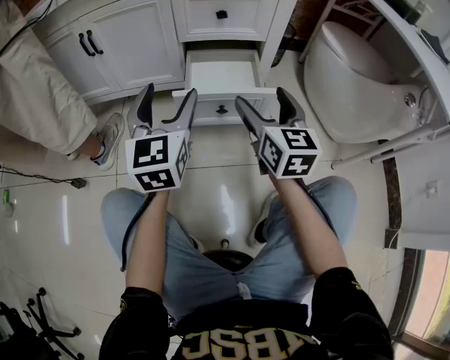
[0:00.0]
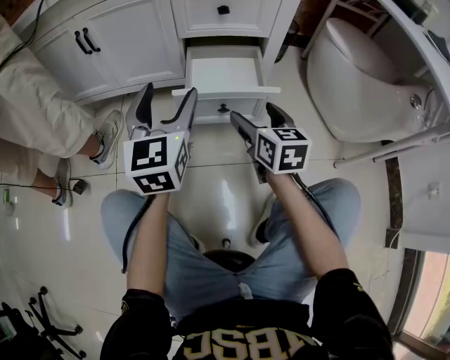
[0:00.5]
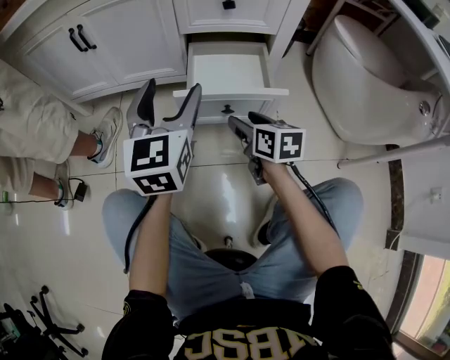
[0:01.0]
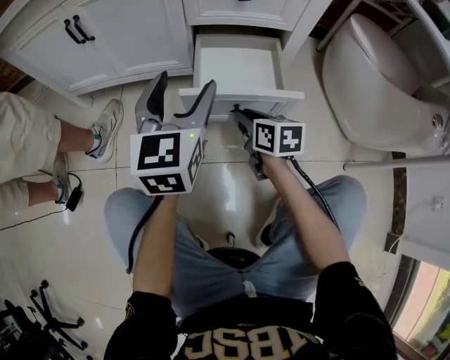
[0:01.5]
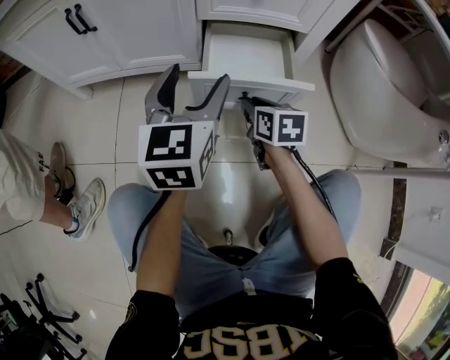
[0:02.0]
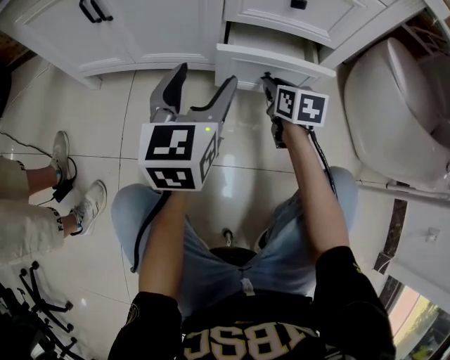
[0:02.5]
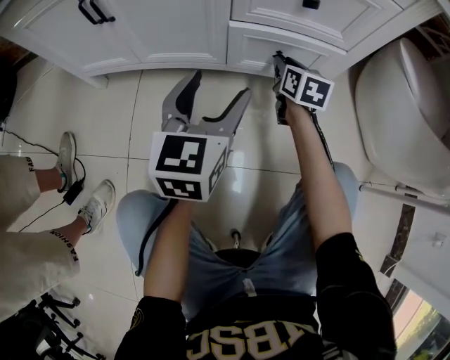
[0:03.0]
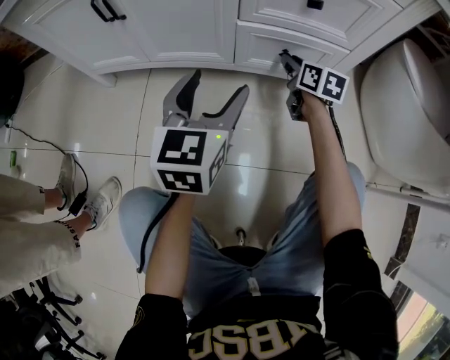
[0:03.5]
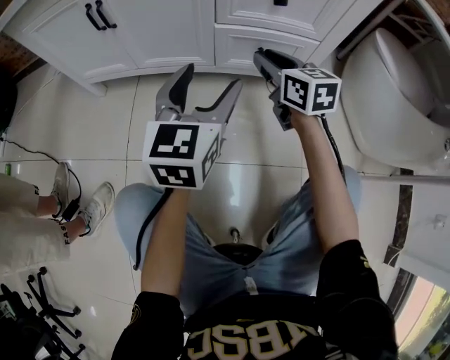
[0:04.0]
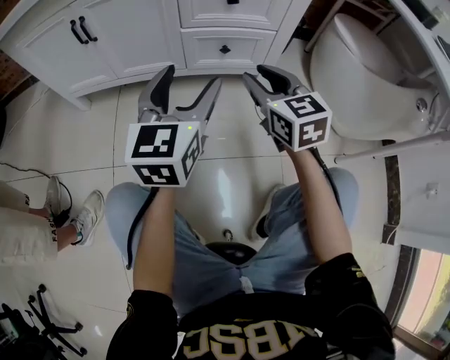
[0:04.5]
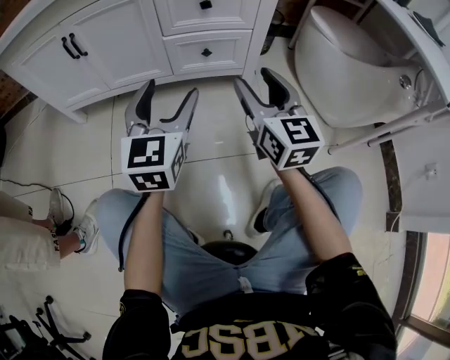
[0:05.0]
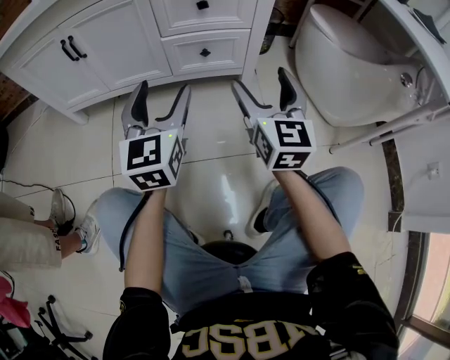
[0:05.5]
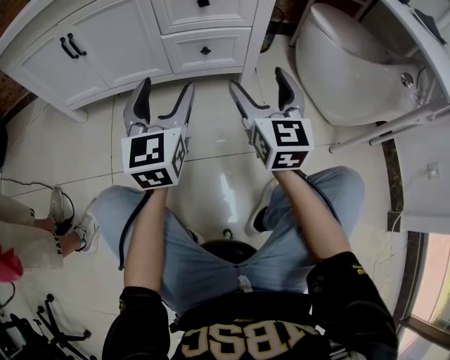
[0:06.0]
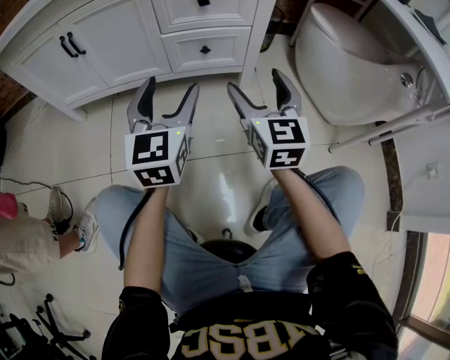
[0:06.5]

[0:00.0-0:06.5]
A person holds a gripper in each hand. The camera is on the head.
0:00.0 to 0:02.0: The right gripper shifts some 20 cm downward and forward, angles its fingers downward, by about 30 degrees, and closes. The left gripper travels forward by approximately 10 cm.
0:02.0 to 0:04.5: The right gripper is displaced upward by some 15 cm, goes forward and returns, some 15 cm each way, and turns by about 30 degrees. The left gripper heads backward, covering some 5 cm.
0:04.5 to 0:06.5: The right gripper travels backward and to the right by approximately 10 cm, rotates approximately 20 degrees, and opens its fingers.

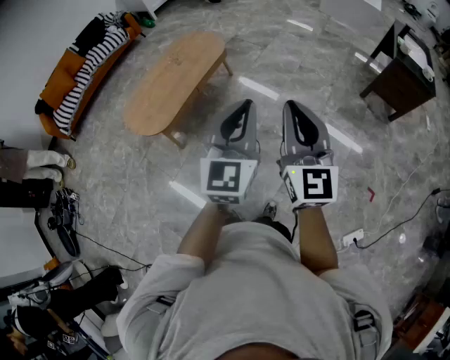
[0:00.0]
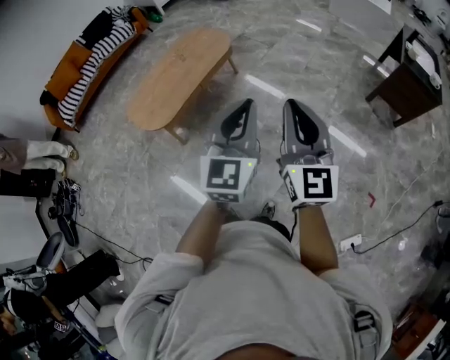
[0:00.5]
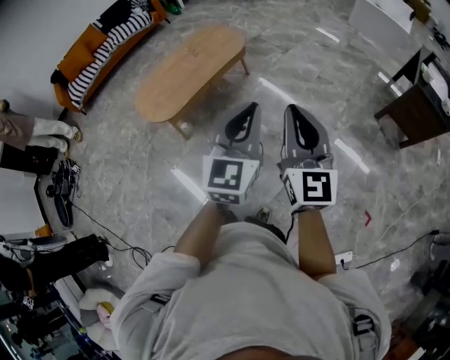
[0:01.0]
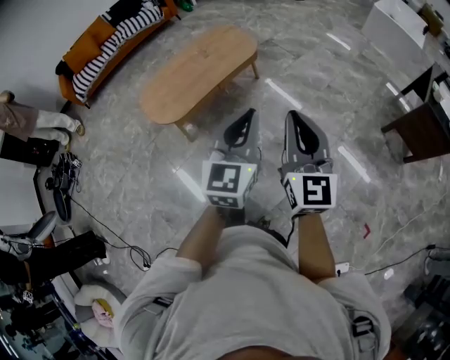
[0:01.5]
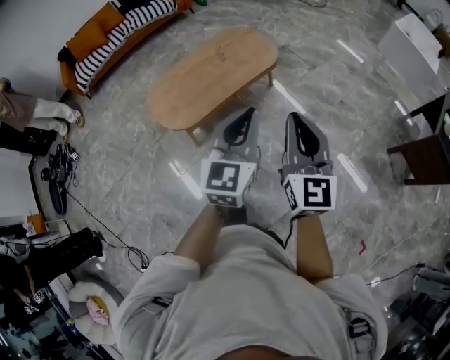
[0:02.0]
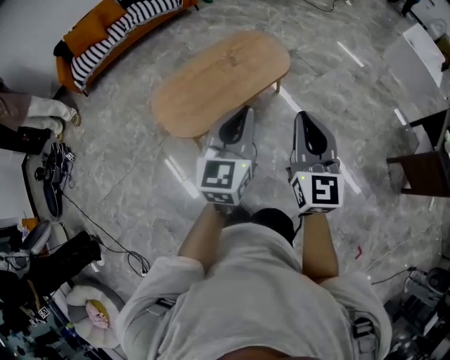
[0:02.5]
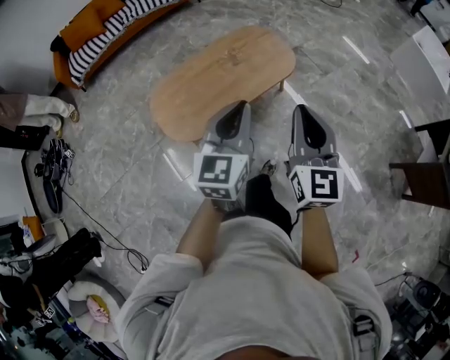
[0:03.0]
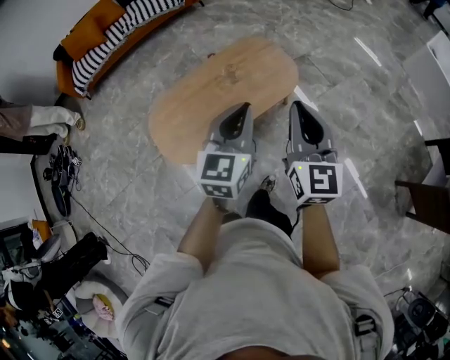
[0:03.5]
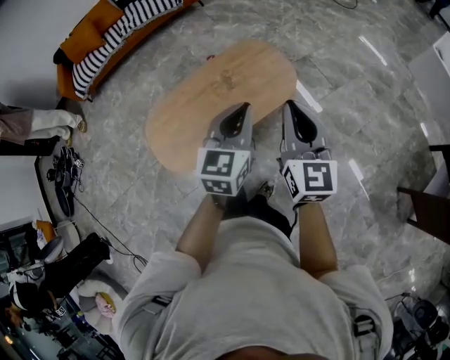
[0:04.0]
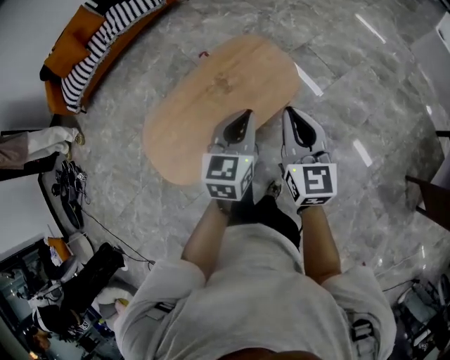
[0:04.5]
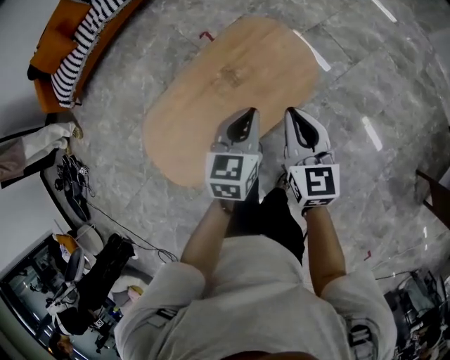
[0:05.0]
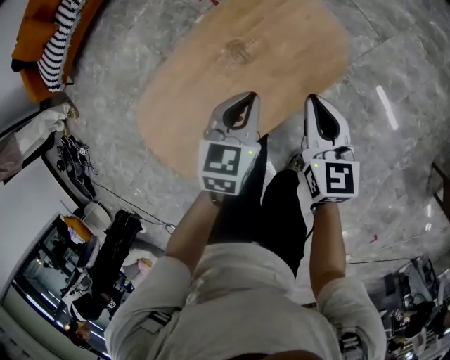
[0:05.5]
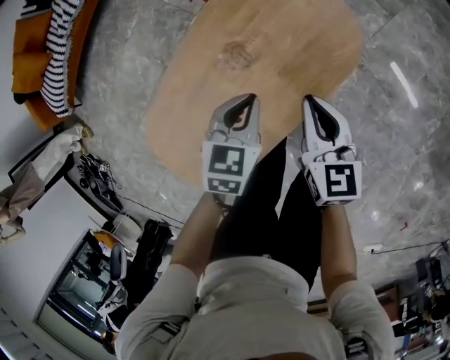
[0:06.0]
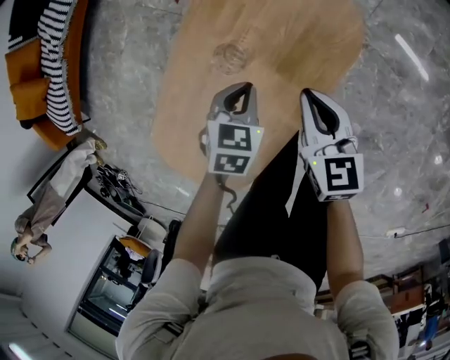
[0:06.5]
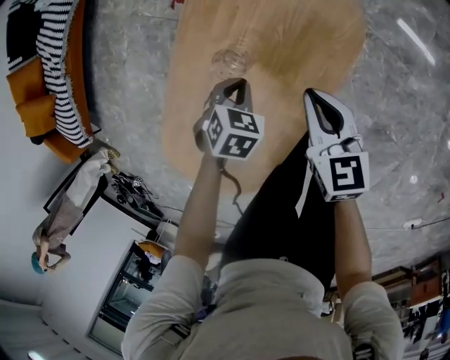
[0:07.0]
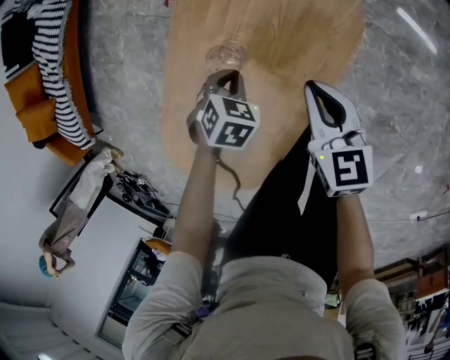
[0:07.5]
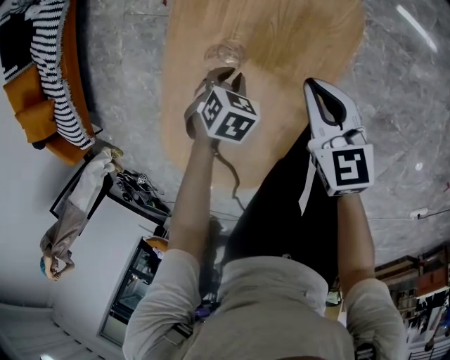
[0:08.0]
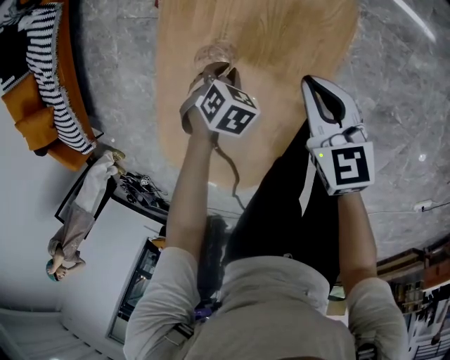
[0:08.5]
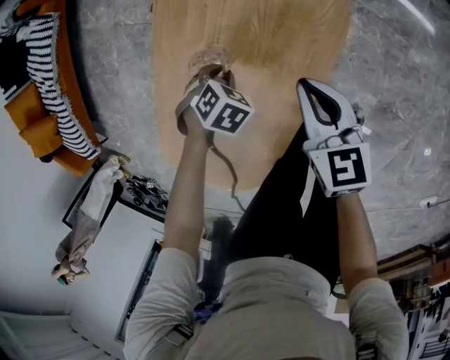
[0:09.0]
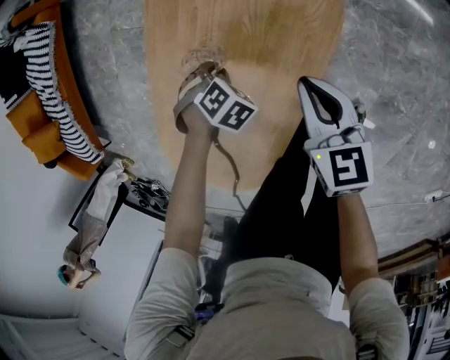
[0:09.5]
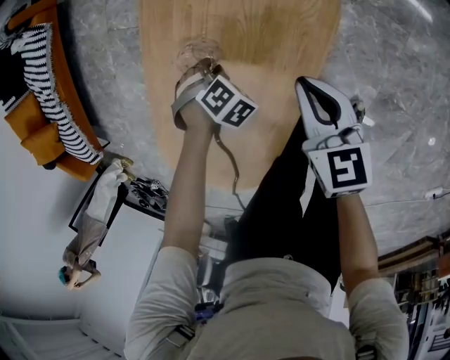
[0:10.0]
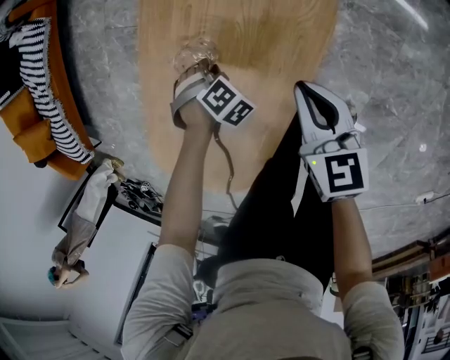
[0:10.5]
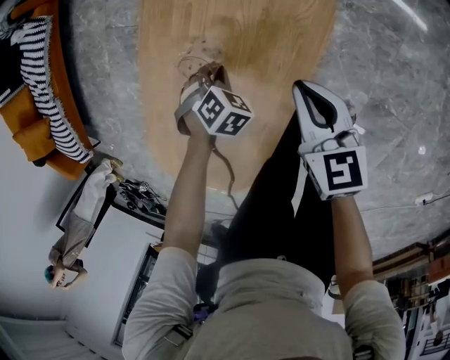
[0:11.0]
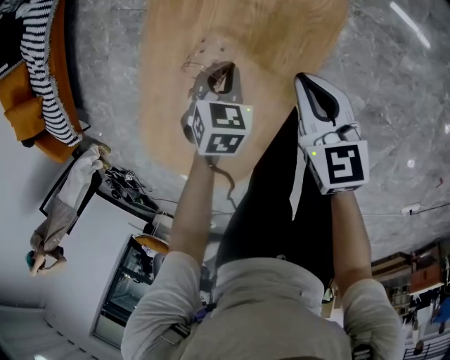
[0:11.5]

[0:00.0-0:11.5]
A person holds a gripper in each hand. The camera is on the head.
0:00.0 to 0:02.0: The grippers both shift forward and to the left by roughly 20 cm.
0:02.0 to 0:04.0: The two grippers travel together, forward, about 40 cm.
0:04.0 to 0:06.0: Both grippers move downward and forward, approximately 40 cm. The right gripper swivels roughly 30 degrees, while the left gripper tilts its fingers some 30 degrees downward.
0:06.0 to 0:07.5: The right gripper heads downward, covering approximately 10 cm. Meanwhile the left gripper goes roughly 15 cm downward, and swivels roughly 40 degrees.
0:07.5 to 0:09.5: The left gripper is displaced downward by roughly 5 cm, and rotates about 30 degrees.
0:09.5 to 0:11.5: The left gripper travels upward by approximately 10 cm, and changes its angle by some 40 degrees.

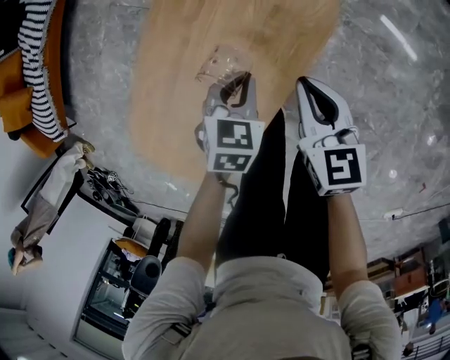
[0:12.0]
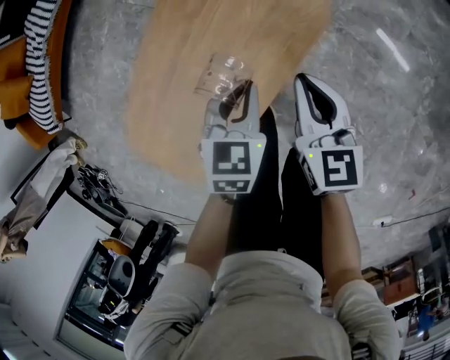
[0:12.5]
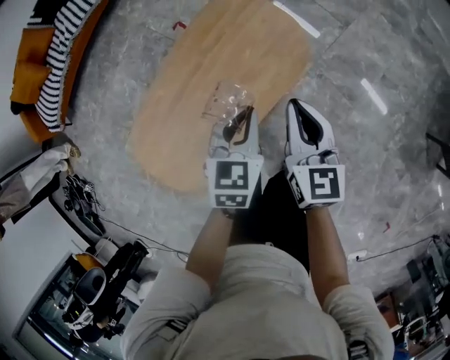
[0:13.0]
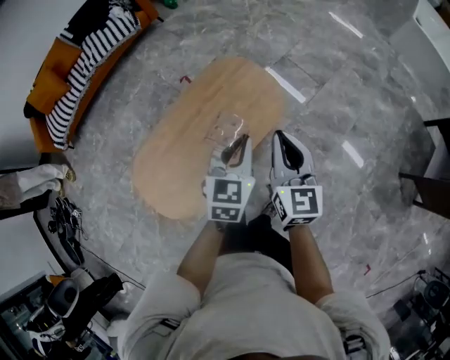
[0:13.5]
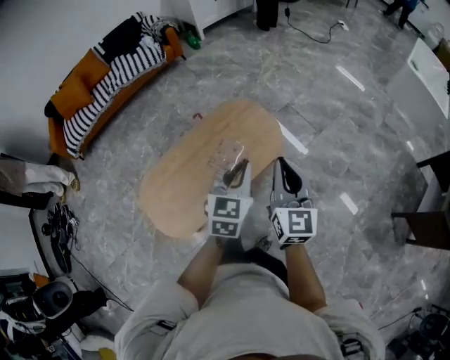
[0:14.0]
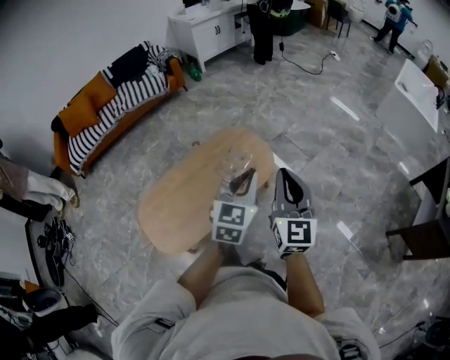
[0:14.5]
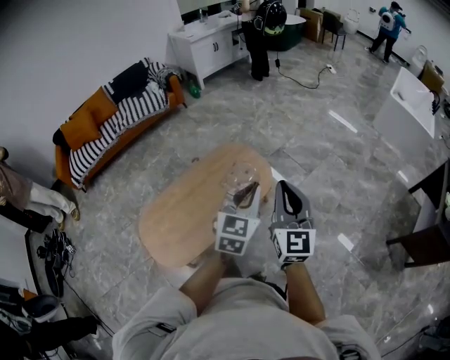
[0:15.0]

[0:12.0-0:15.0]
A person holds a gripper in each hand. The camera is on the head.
0:12.0 to 0:13.5: The two grippers go approximately 35 cm upward. The right gripper turns by roughly 30 degrees; the left gripper rotates some 30 degrees.
0:13.5 to 0:15.0: The right gripper moves upward and backward, approximately 20 cm; the left gripper travels upward, backward and to the right by roughly 20 cm.

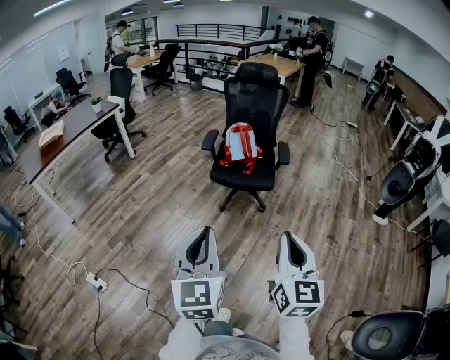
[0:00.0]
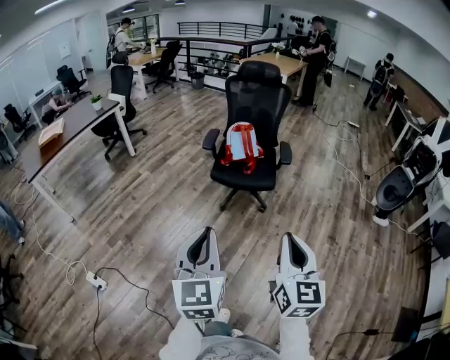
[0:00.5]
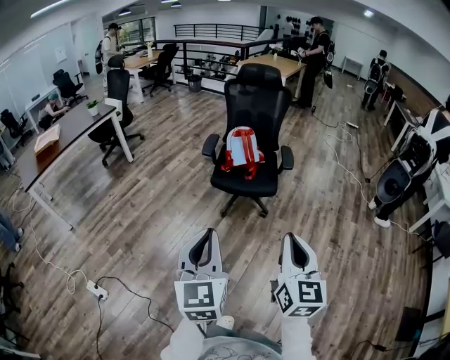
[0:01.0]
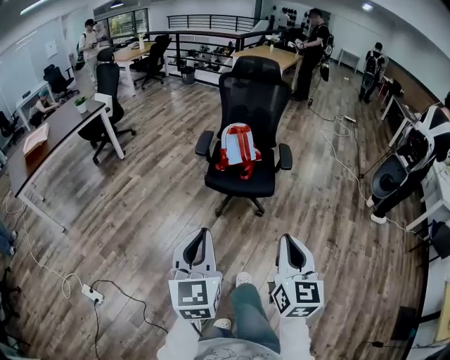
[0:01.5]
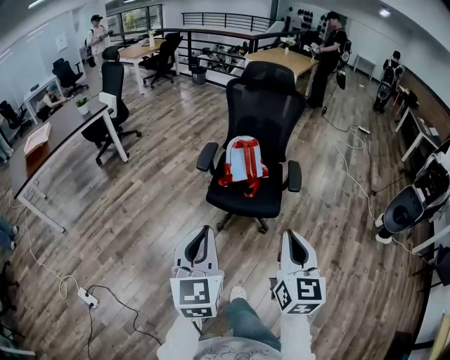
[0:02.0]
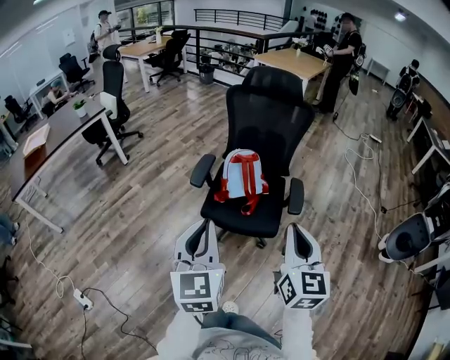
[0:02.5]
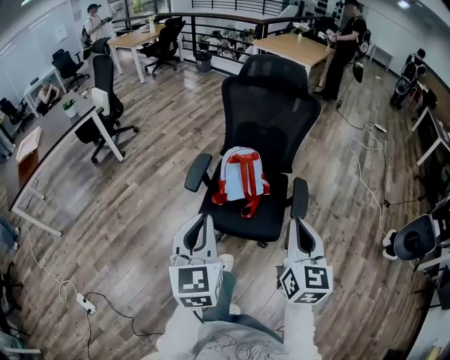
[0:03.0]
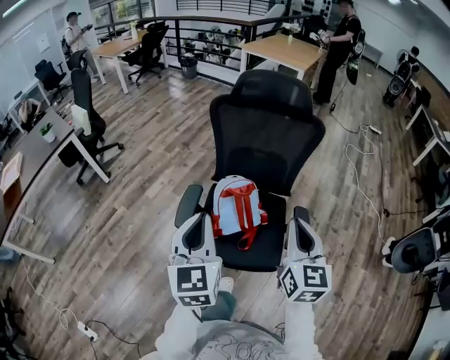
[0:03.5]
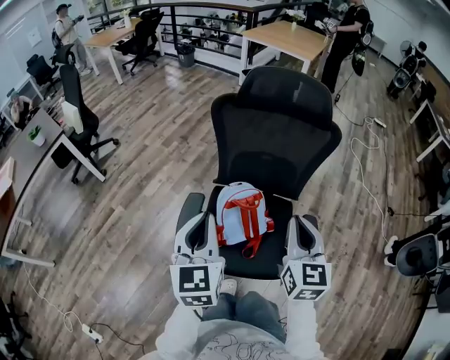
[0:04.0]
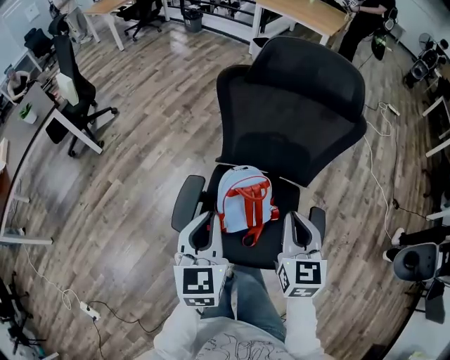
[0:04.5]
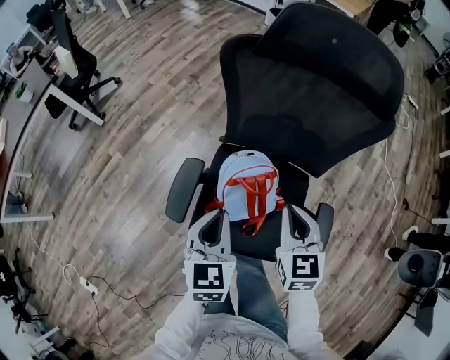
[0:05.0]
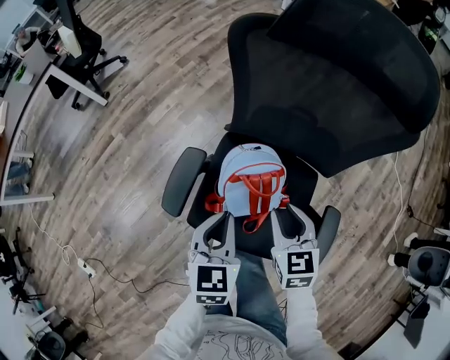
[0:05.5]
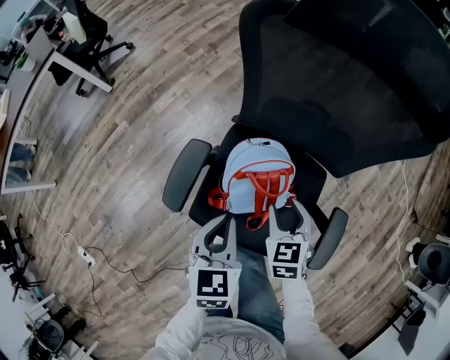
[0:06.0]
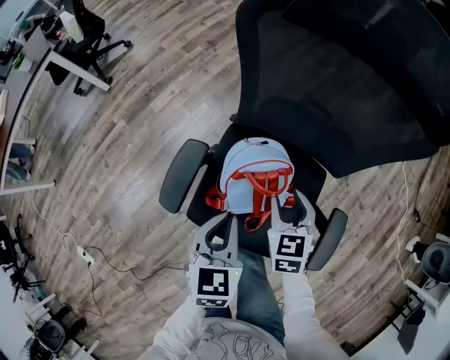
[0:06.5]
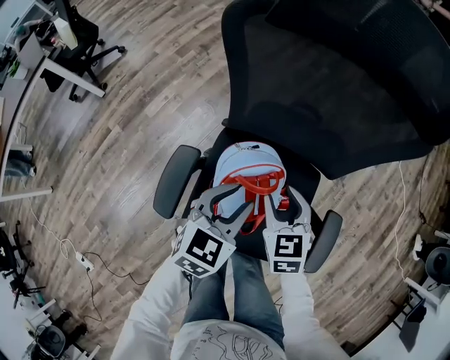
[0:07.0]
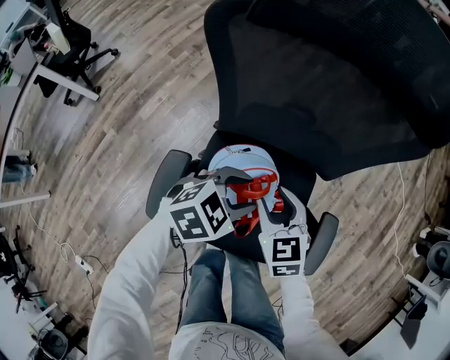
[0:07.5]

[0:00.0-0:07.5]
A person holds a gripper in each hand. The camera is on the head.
0:00.0 to 0:02.0: The grippers both shift forward by some 30 cm.
0:02.0 to 0:04.0: The pair of grippers is taken forward, some 50 cm.
0:04.0 to 0:05.5: The left gripper travels downward by about 20 cm, and swivels approximately 20 degrees. The right gripper travels downward and forward by about 25 cm, turns by about 30 degrees, and opens up.
0:05.5 to 0:07.5: The left gripper shifts by roughly 15 cm, changes its angle by approximately 60 degrees, and opens up. Meanwhile the right gripper changes place by roughly 5 cm.
